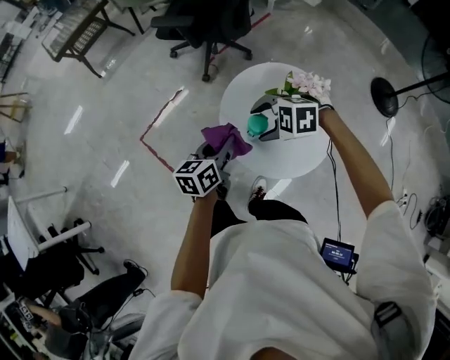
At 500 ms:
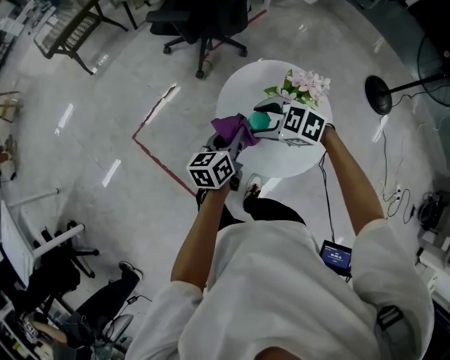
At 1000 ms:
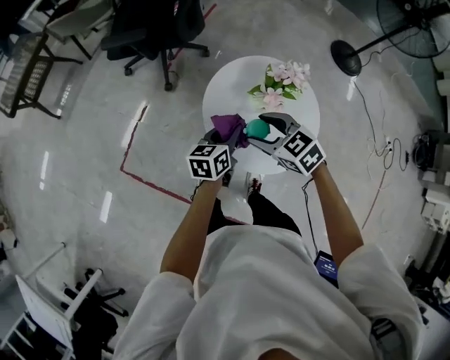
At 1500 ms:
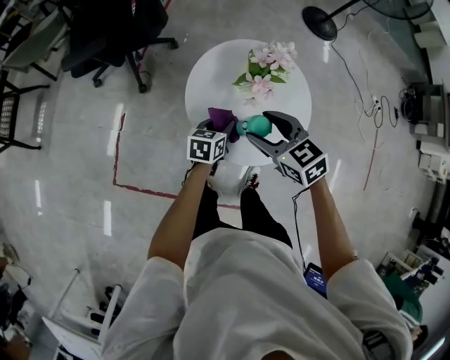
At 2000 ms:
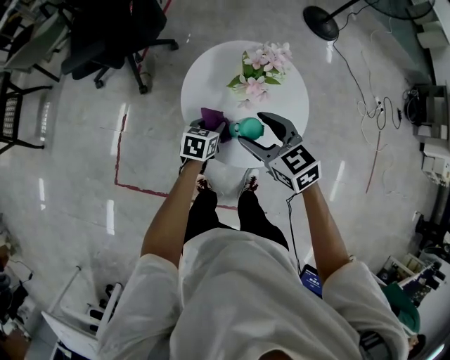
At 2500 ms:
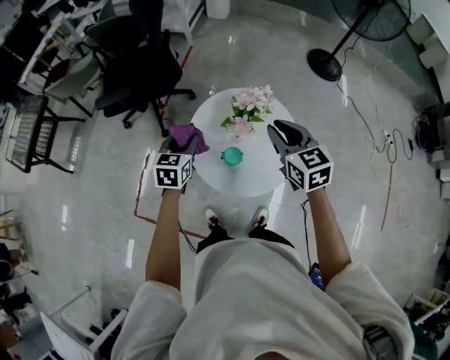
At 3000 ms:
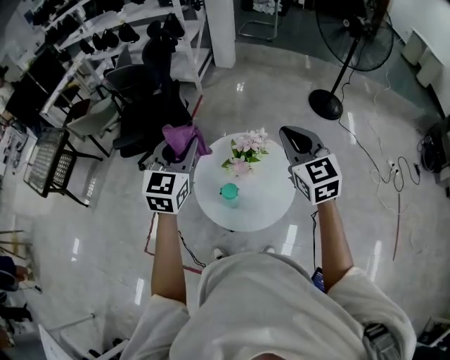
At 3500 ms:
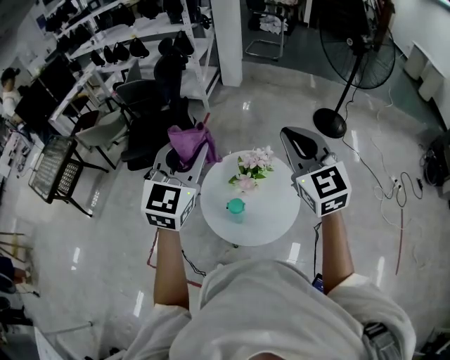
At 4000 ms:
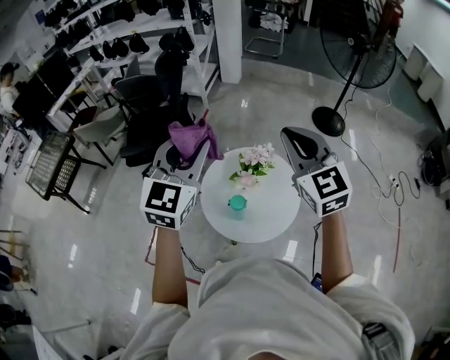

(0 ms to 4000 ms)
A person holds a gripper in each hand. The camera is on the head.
0 ms - 2000 ms: The left gripper travels downward by about 15 cm, and swivels roughly 50 degrees, while the right gripper changes its angle by approximately 90 degrees.
2000 ms - 4000 ms: The left gripper heads upward, covering some 50 cm, and points its fingers roughly 40 degrees further upward; the right gripper goes roughly 35 cm upward, tips its fingers upward by about 30 degrees, and closes.

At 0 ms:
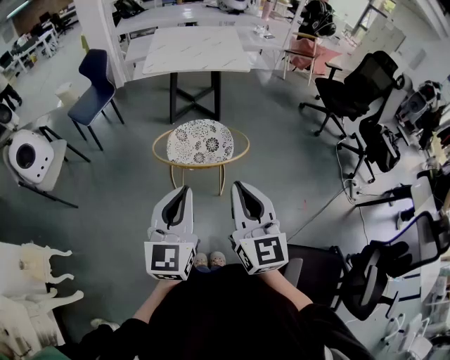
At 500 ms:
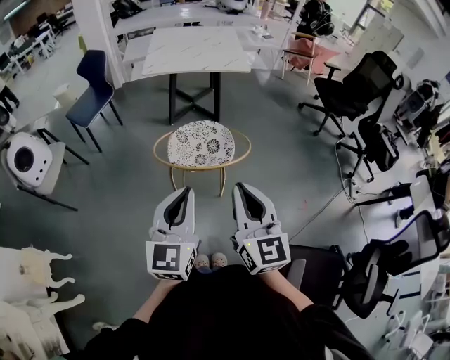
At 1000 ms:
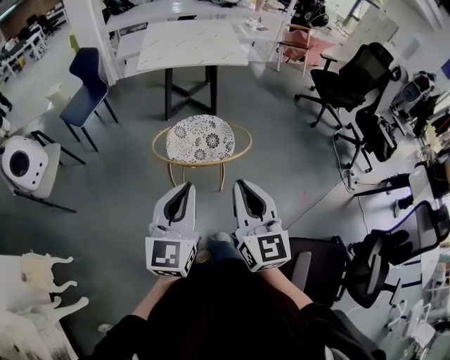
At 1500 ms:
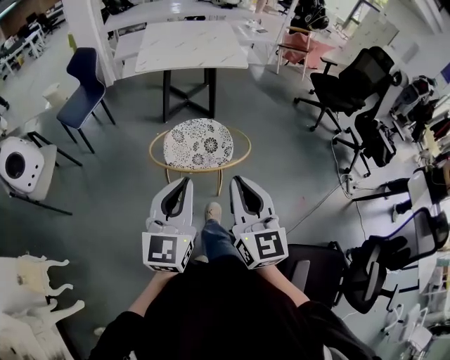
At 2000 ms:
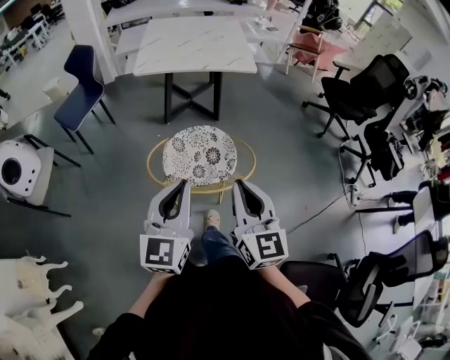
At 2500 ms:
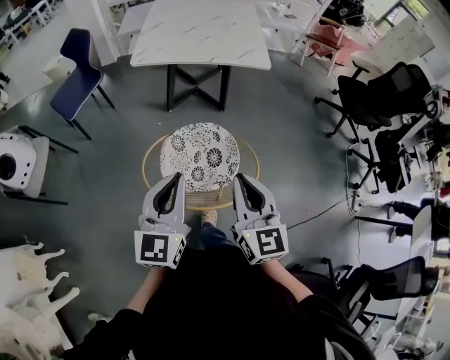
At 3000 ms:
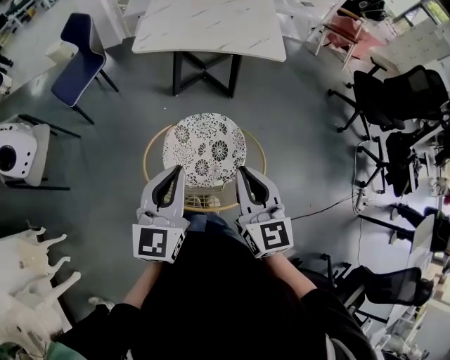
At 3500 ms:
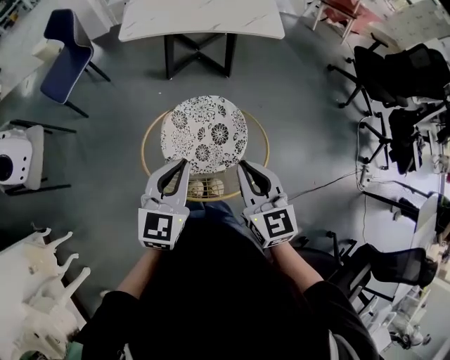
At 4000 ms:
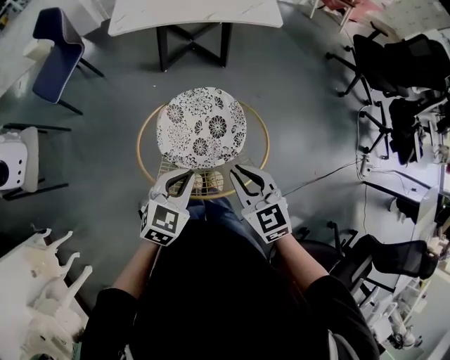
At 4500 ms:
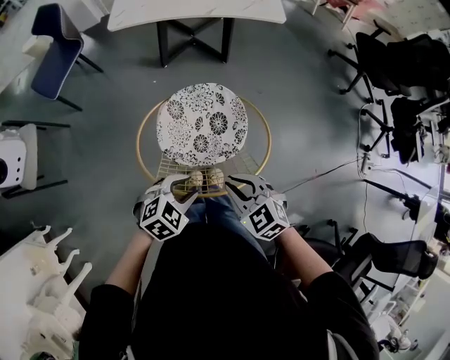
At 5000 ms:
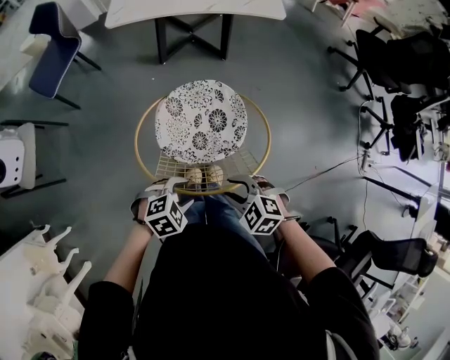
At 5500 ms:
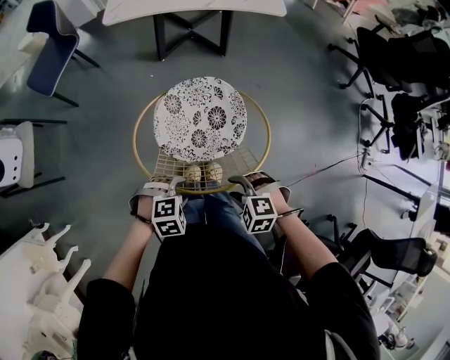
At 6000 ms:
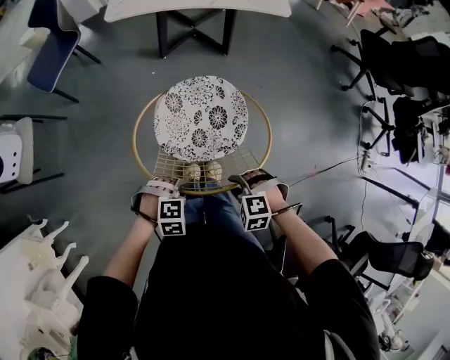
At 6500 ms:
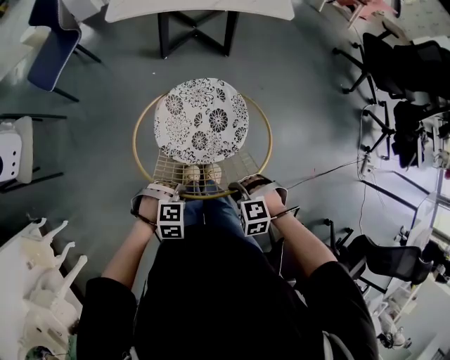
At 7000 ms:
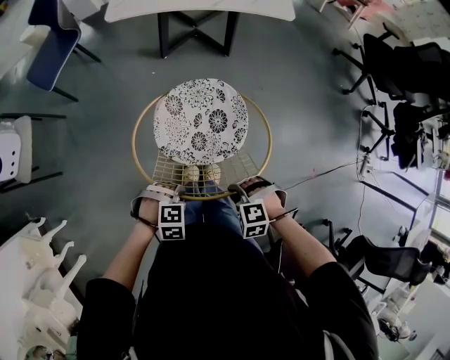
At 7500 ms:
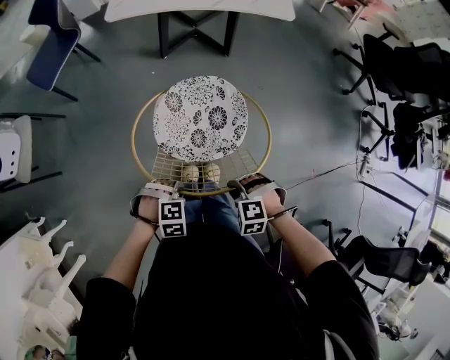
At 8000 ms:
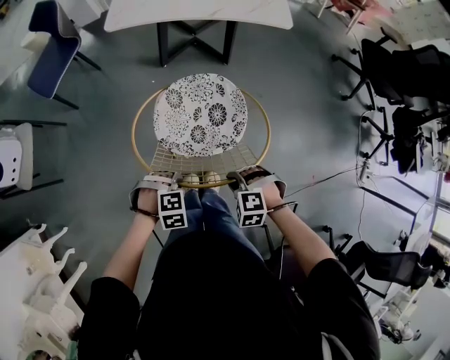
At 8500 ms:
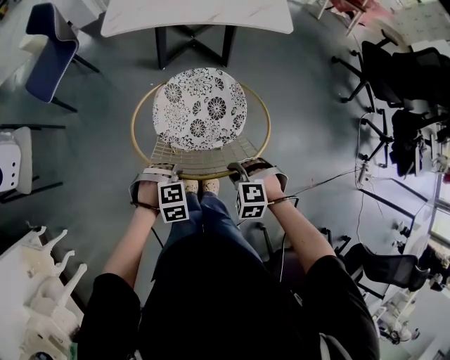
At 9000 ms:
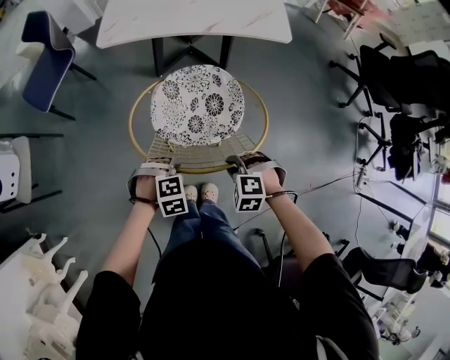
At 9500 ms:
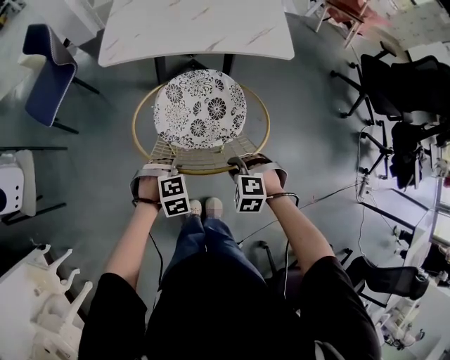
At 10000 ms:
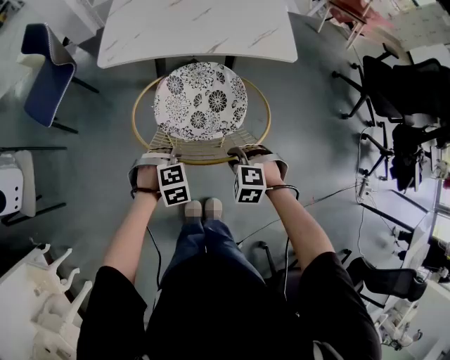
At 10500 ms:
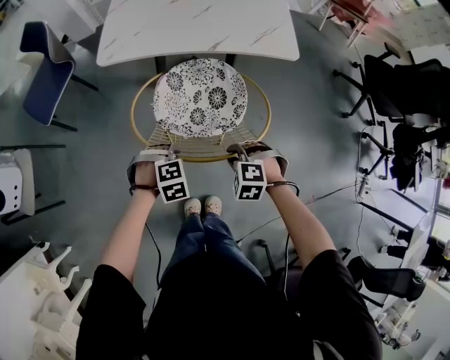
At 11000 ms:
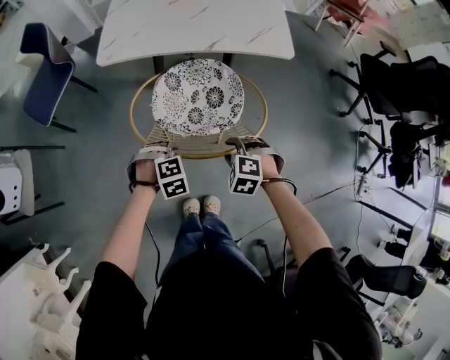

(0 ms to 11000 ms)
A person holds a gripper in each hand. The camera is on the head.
0 ms - 2000 ms: The grippers both shift forward by roughly 15 cm.
2000 ms - 3500 ms: The two grippers go roughly 20 cm forward and downward.
3500 ms - 5500 ms: The two grippers go roughly 20 cm downward. The left gripper tips its fingers downward by about 50 degrees, and opens its fingers; the right gripper tilts its fingers roughly 50 degrees downward, and opens its fingers.
5500 ms - 7500 ms: The left gripper closes its fingers. The right gripper closes.
7500 ms - 9000 ms: The grippers stay close to where they were, moving slightly.

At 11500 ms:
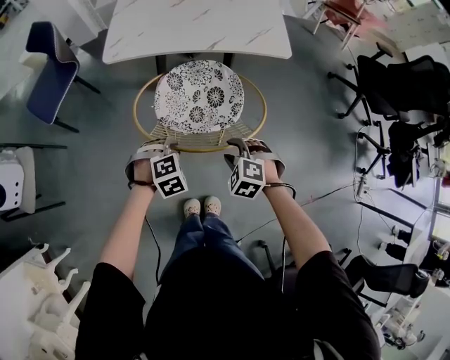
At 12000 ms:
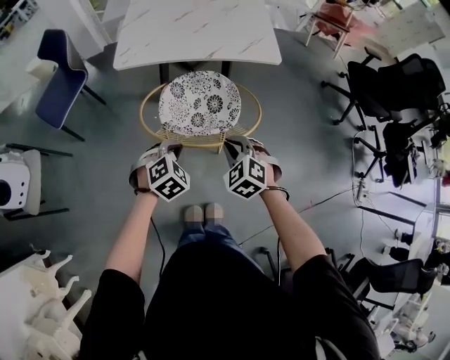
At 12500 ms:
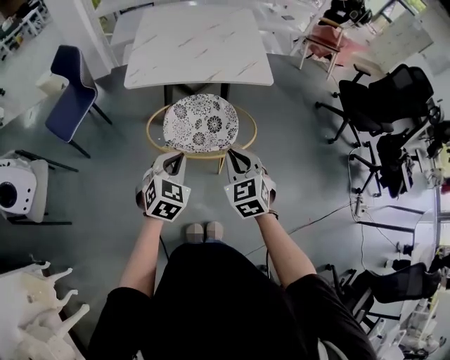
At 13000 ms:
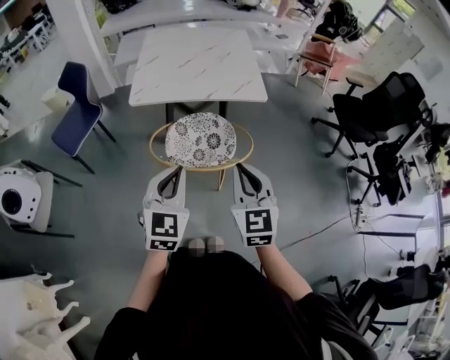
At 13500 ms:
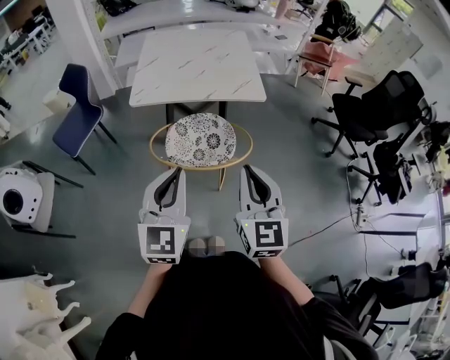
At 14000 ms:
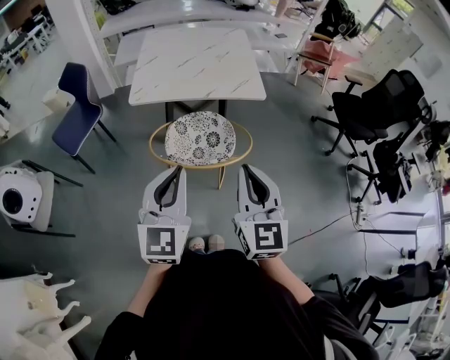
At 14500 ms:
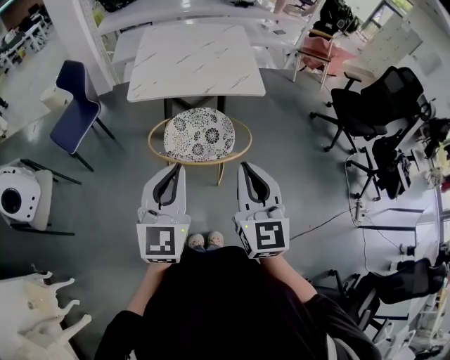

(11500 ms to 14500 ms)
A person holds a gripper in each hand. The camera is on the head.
11500 ms - 13000 ms: The grippers both shift upward by roughly 30 cm. The right gripper tilts its fingers roughly 50 degrees upward, and closes its fingers. The left gripper tilts its fingers approximately 50 degrees upward, and closes.
13000 ms - 14500 ms: The grippers both shift upward by roughly 5 cm.

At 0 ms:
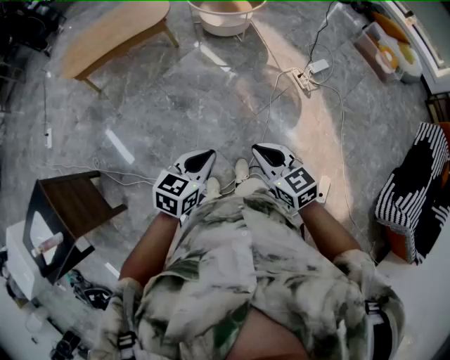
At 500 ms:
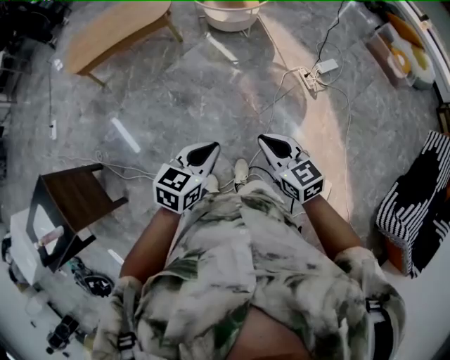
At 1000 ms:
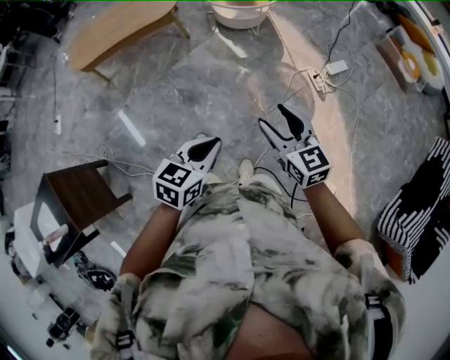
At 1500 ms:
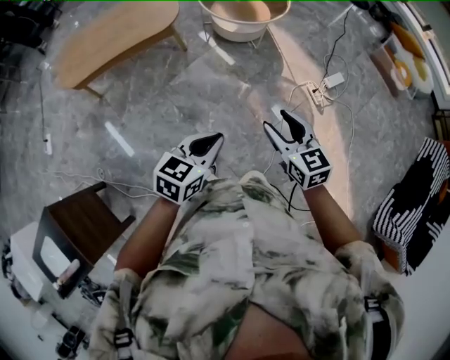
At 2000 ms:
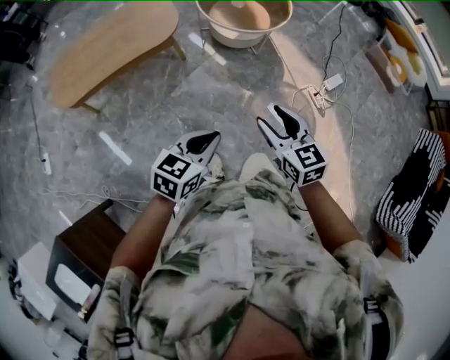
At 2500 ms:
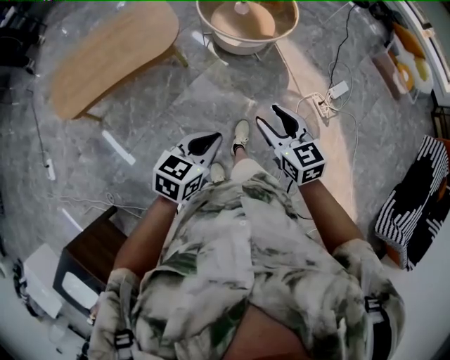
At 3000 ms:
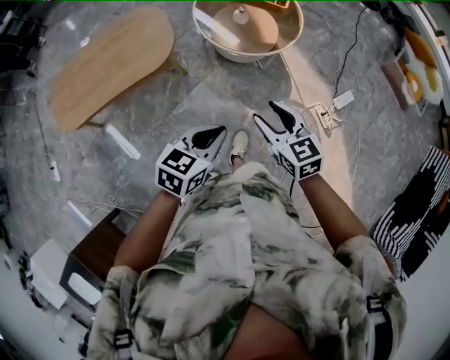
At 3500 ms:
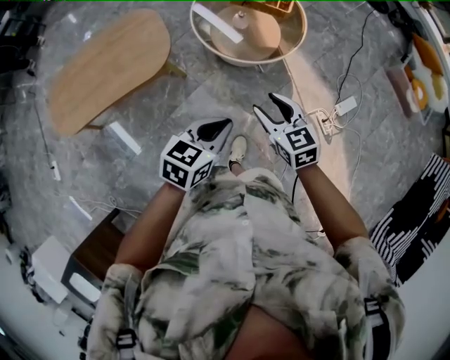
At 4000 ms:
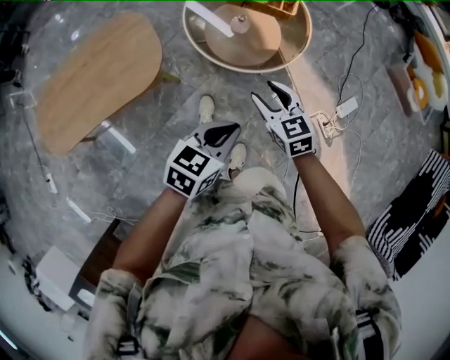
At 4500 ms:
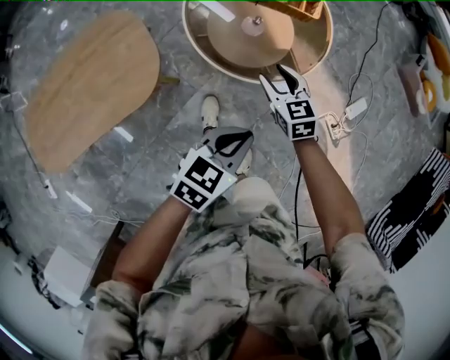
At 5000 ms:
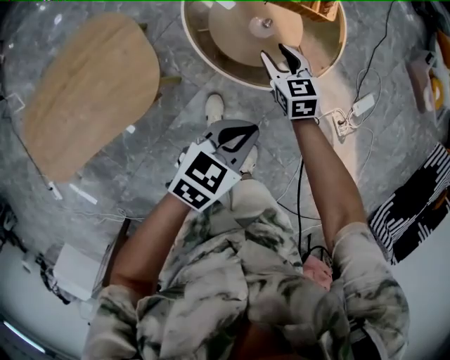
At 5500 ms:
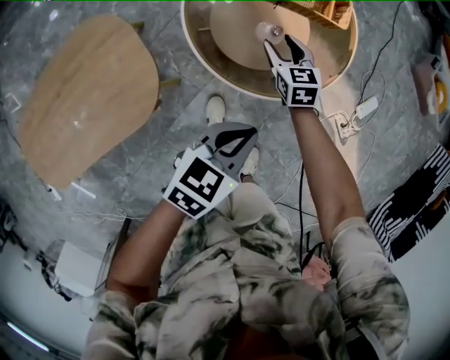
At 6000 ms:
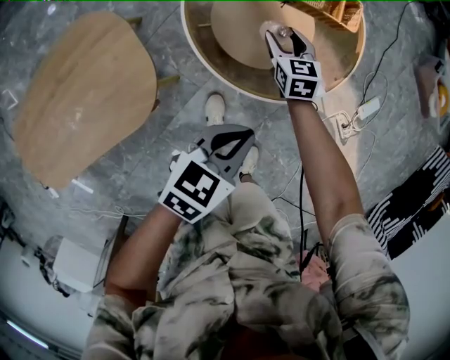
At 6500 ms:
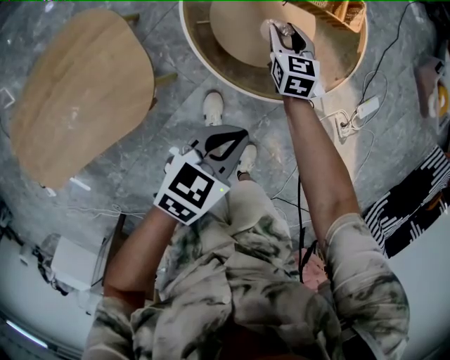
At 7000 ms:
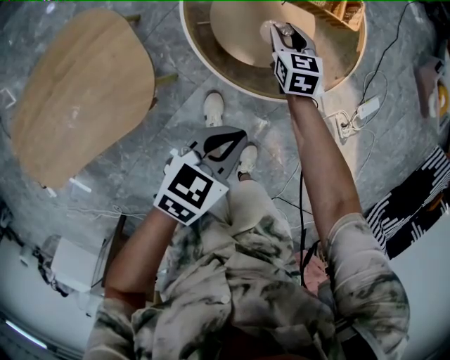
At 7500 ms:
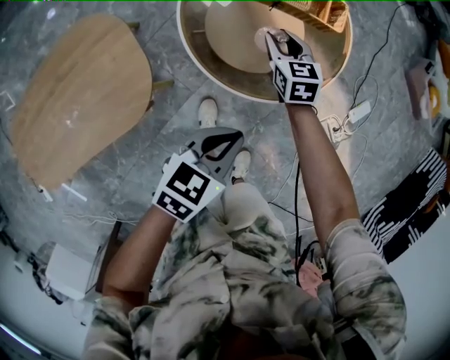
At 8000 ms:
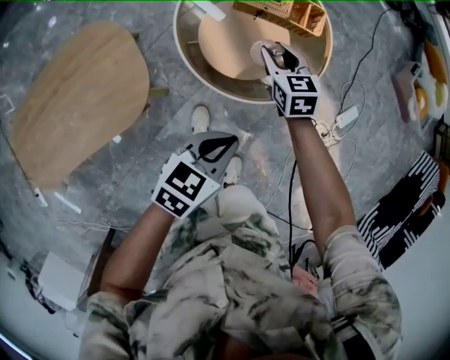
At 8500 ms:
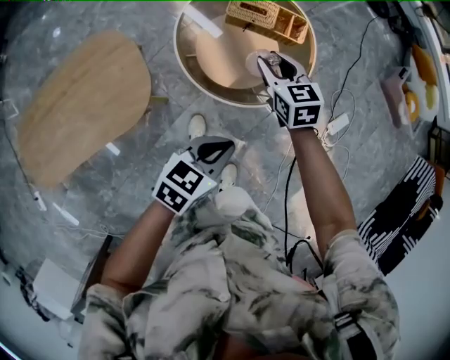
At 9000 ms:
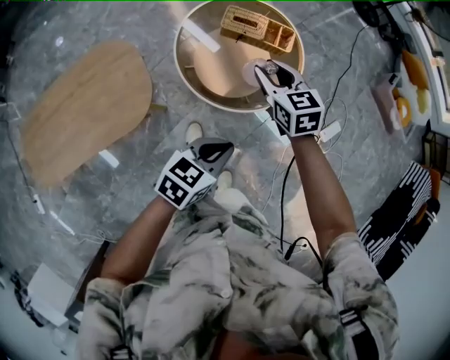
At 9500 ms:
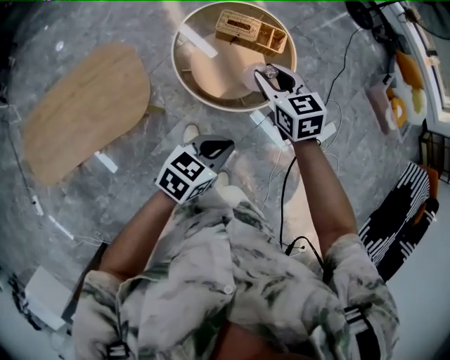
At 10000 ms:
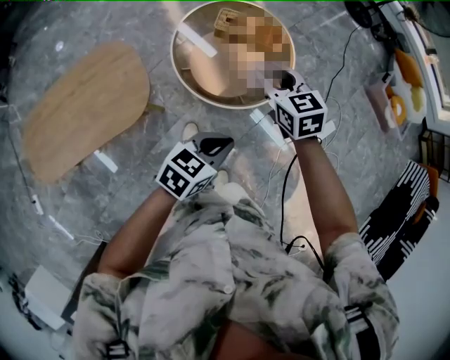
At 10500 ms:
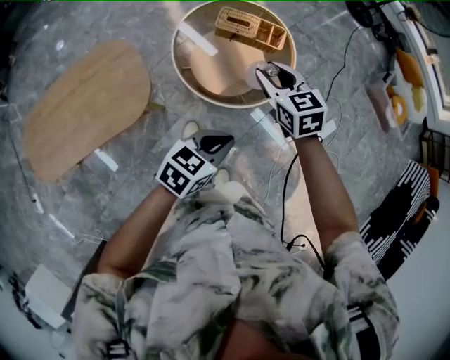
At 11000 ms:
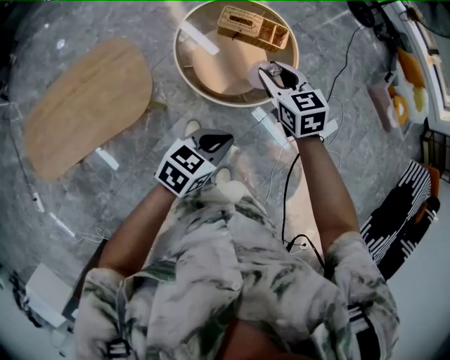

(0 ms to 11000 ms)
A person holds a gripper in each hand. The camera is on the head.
0 ms - 2000 ms: The two grippers travel together, forward and to the left, some 50 cm. The right gripper opens its fingers.
2000 ms - 3500 ms: The two grippers travel together, forward, approximately 40 cm.
3500 ms - 5500 ms: Both grippers are carried forward and to the left, approximately 50 cm. The right gripper is displaced downward by some 40 cm, and changes its angle by roughly 20 degrees. The left gripper is displaced downward by some 25 cm.
7500 ms - 9000 ms: The right gripper travels upward by some 30 cm; the left gripper travels upward, backward and to the right by roughly 20 cm.
9000 ms - 11000 ms: The right gripper shifts by some 5 cm.
